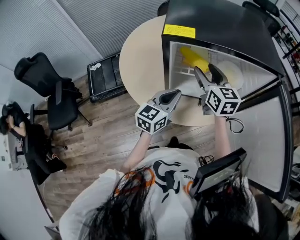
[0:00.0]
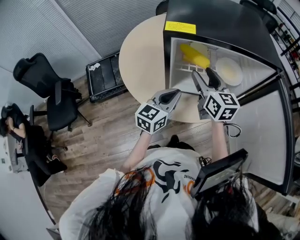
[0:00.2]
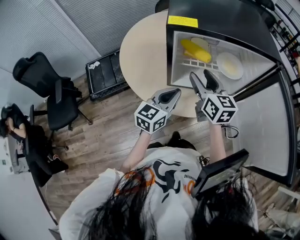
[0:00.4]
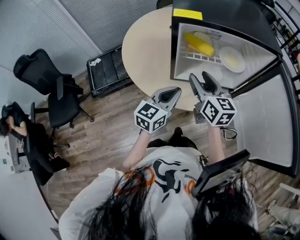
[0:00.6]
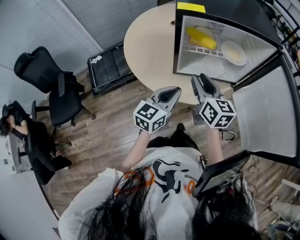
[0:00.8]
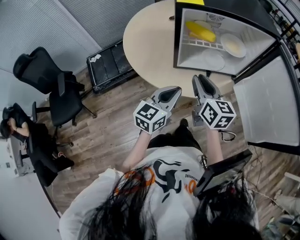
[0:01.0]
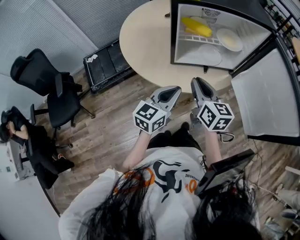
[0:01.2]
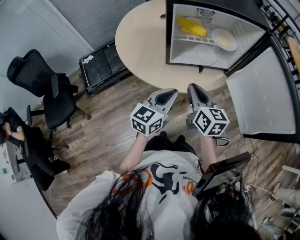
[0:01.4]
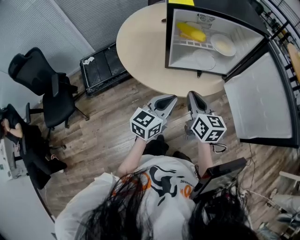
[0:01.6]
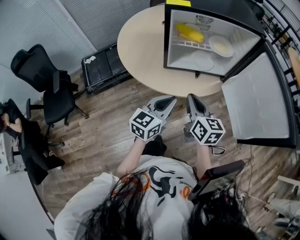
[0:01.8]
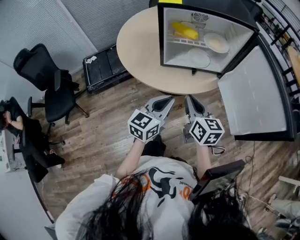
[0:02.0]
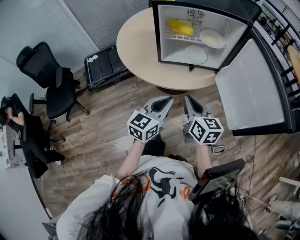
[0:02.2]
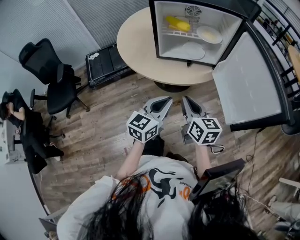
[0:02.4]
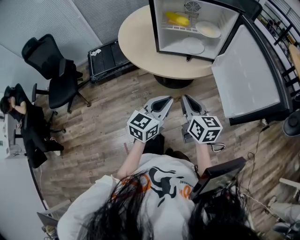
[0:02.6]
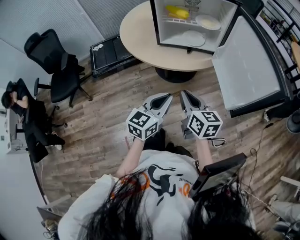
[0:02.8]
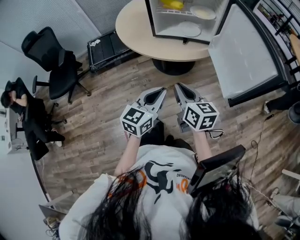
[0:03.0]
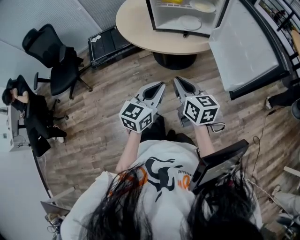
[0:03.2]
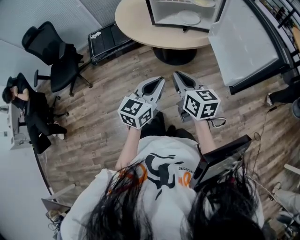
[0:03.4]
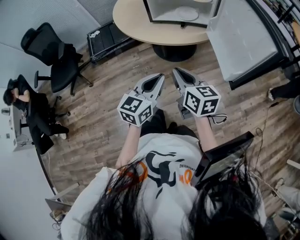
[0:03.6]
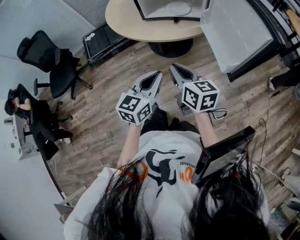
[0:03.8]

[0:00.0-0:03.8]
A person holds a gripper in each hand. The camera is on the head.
0:00.0 to 0:01.2: The grippers both shift backward by about 20 cm. The right gripper closes up.
0:01.2 to 0:02.6: The two grippers go about 20 cm backward and to the right.
0:02.6 to 0:03.8: The two grippers go roughly 5 cm backward.

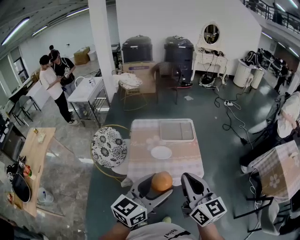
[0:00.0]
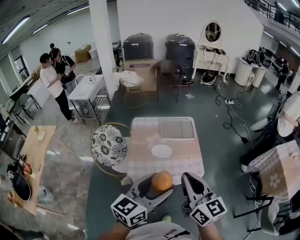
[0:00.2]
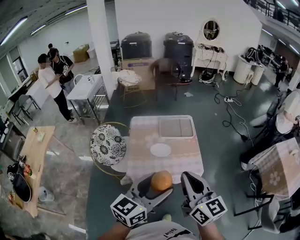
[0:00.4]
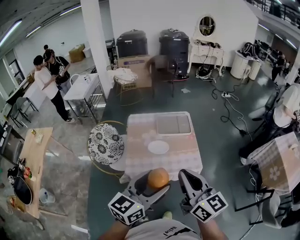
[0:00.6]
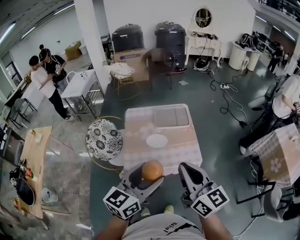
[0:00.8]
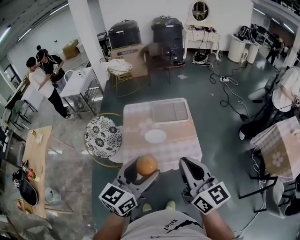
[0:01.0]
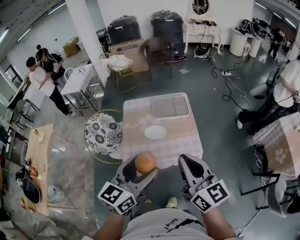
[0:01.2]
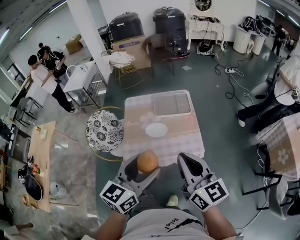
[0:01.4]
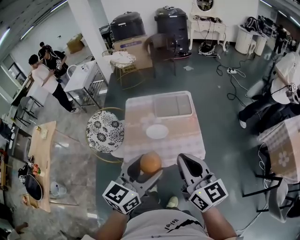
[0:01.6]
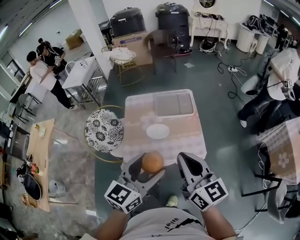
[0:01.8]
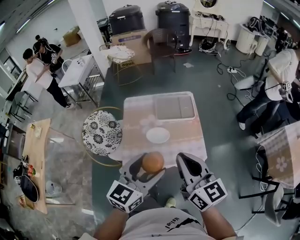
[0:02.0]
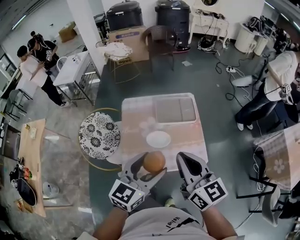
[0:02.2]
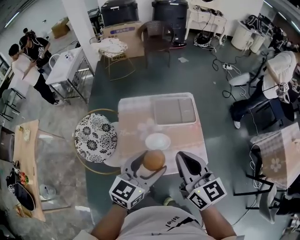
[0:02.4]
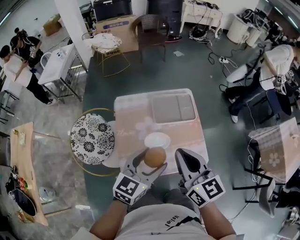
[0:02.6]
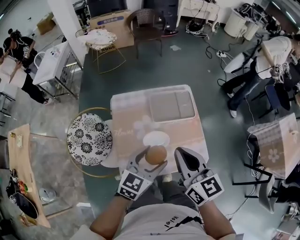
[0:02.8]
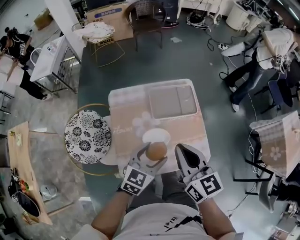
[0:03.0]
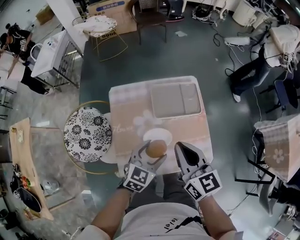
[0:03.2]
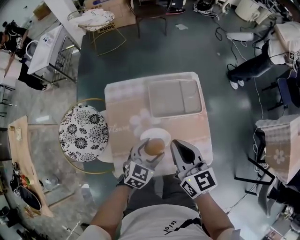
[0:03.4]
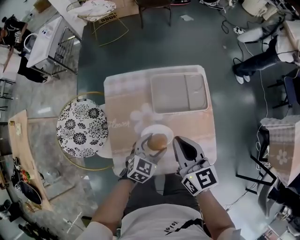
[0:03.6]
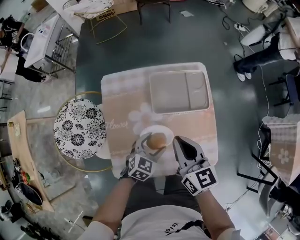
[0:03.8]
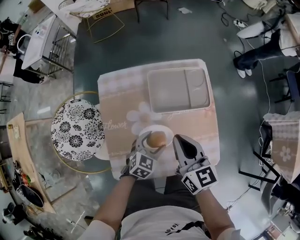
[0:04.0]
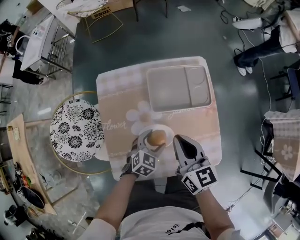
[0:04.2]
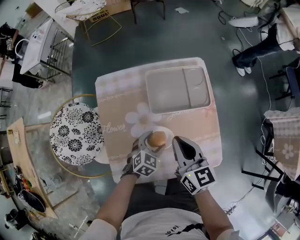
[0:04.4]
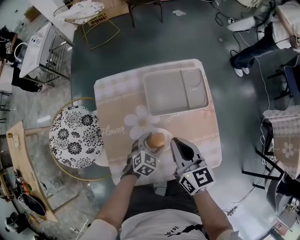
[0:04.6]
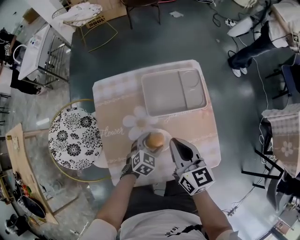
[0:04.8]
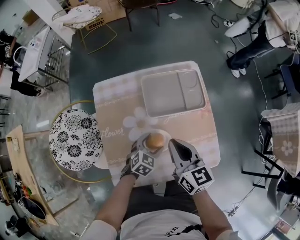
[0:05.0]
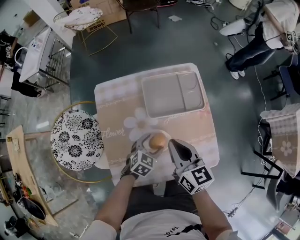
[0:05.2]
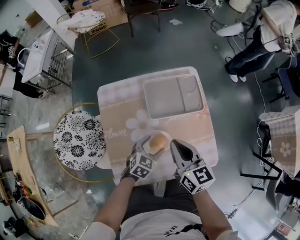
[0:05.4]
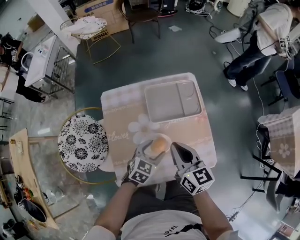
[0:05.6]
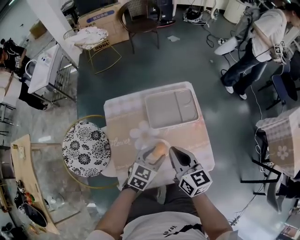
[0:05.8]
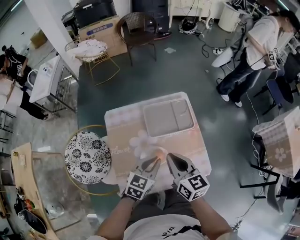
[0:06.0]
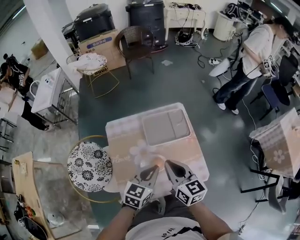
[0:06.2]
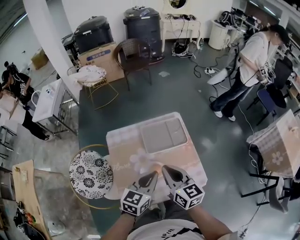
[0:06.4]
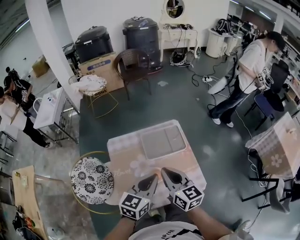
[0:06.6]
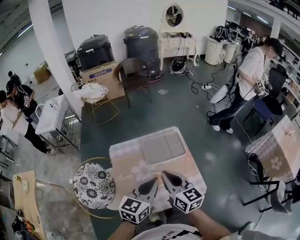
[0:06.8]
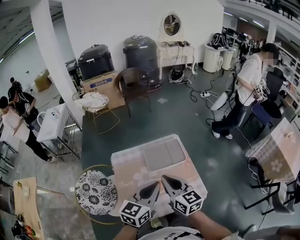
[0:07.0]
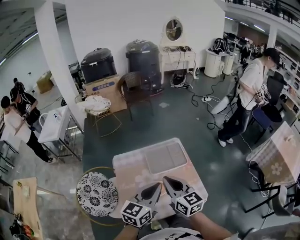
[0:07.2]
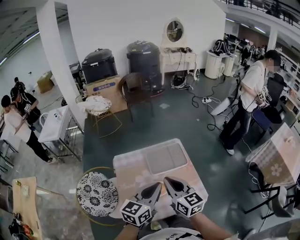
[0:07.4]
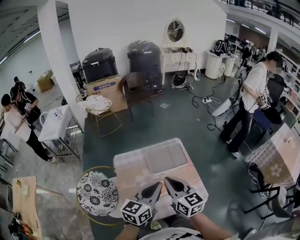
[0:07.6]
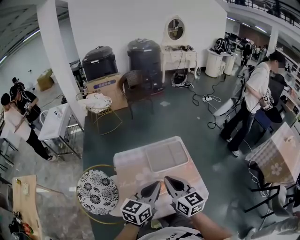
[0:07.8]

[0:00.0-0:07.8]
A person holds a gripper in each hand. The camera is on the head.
0:00.0 to 0:01.6: The right gripper travels to the right by about 5 cm. The left gripper shifts by some 5 cm.
0:01.6 to 0:03.2: The left gripper travels forward and downward by roughly 35 cm, and turns by some 30 degrees, while the right gripper travels forward, downward and to the left by roughly 30 cm.
0:03.2 to 0:04.6: Both grippers move downward, some 20 cm. The left gripper rotates approximately 20 degrees.
0:04.6 to 0:06.2: The right gripper shifts roughly 15 cm upward; the left gripper shifts about 25 cm upward, swivels about 30 degrees, and closes up.
0:06.2 to 0:07.8: Both grippers move upward, roughly 10 cm.

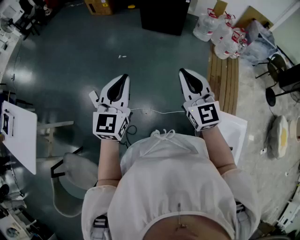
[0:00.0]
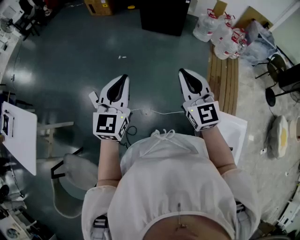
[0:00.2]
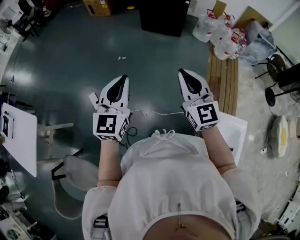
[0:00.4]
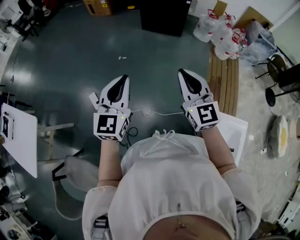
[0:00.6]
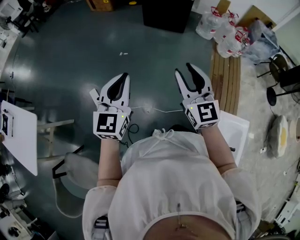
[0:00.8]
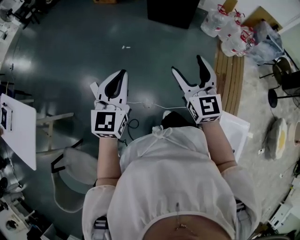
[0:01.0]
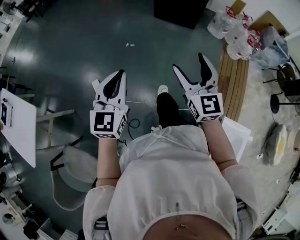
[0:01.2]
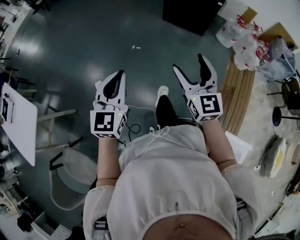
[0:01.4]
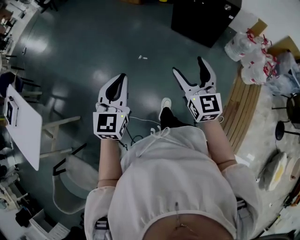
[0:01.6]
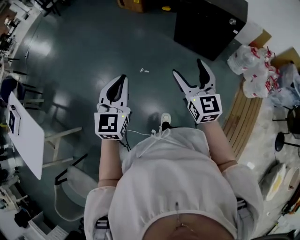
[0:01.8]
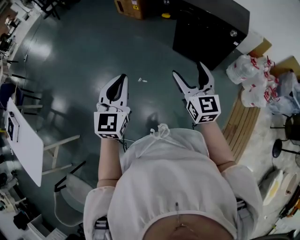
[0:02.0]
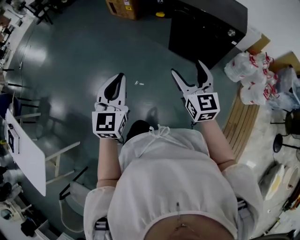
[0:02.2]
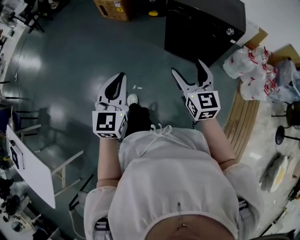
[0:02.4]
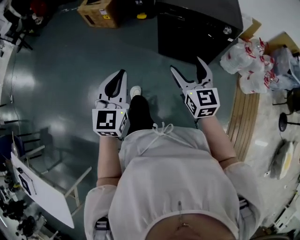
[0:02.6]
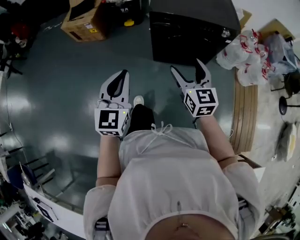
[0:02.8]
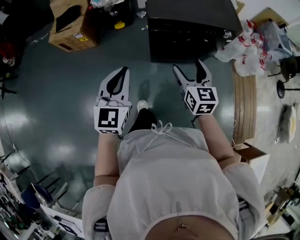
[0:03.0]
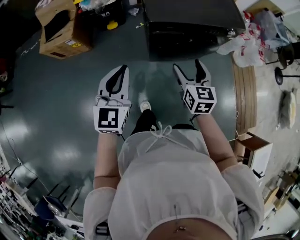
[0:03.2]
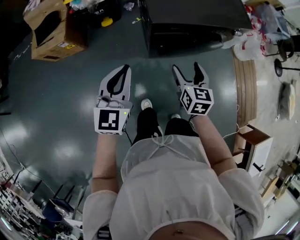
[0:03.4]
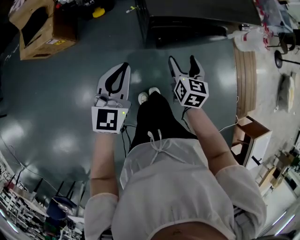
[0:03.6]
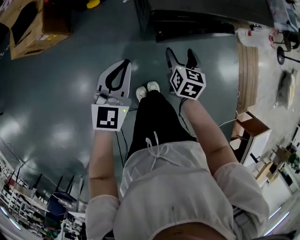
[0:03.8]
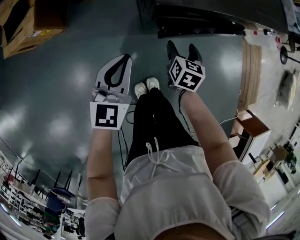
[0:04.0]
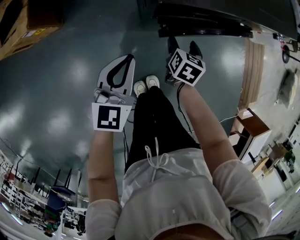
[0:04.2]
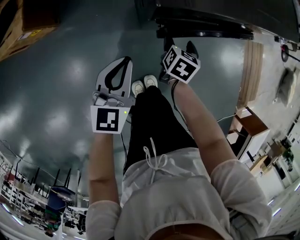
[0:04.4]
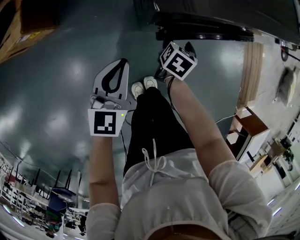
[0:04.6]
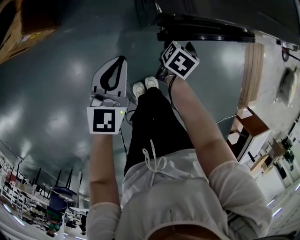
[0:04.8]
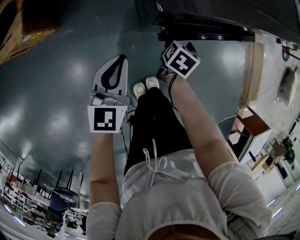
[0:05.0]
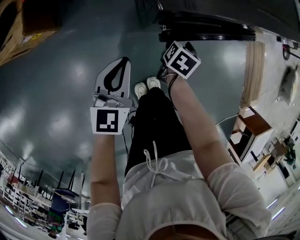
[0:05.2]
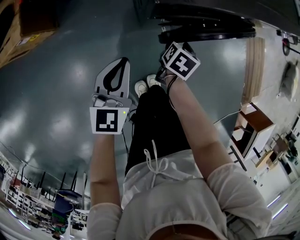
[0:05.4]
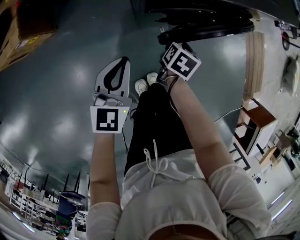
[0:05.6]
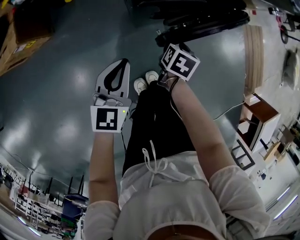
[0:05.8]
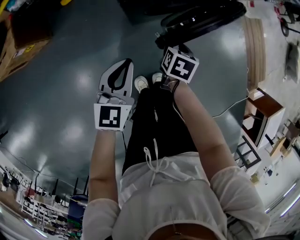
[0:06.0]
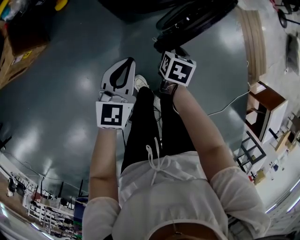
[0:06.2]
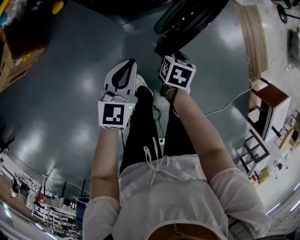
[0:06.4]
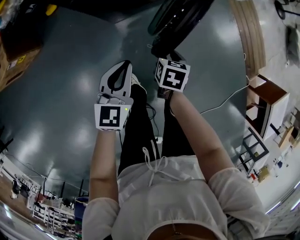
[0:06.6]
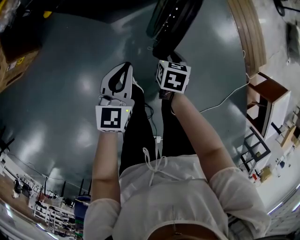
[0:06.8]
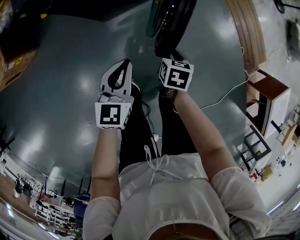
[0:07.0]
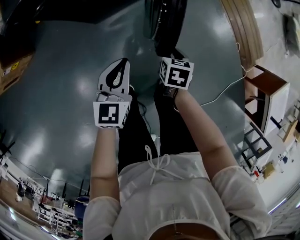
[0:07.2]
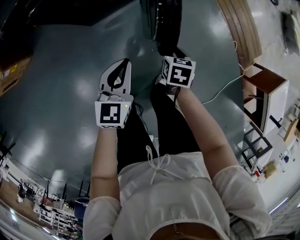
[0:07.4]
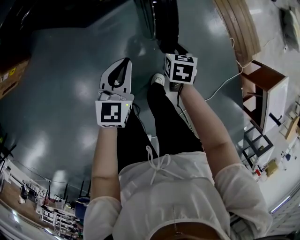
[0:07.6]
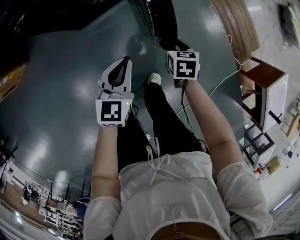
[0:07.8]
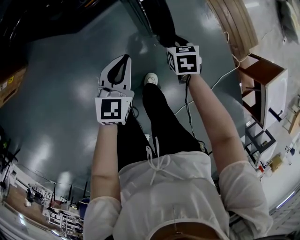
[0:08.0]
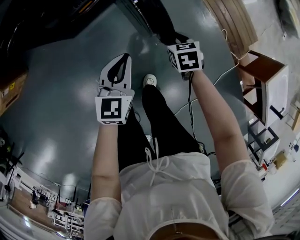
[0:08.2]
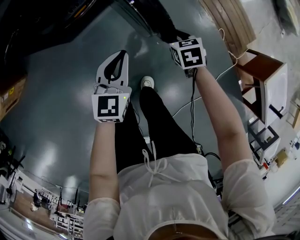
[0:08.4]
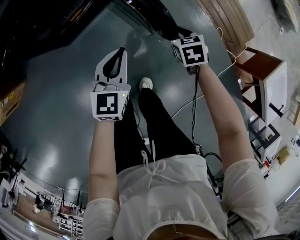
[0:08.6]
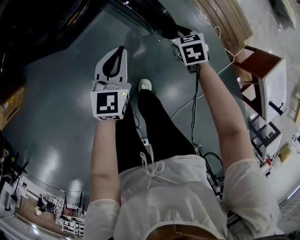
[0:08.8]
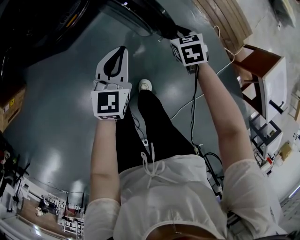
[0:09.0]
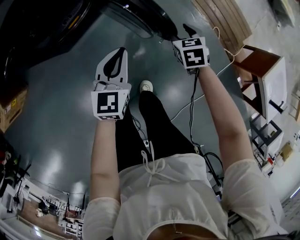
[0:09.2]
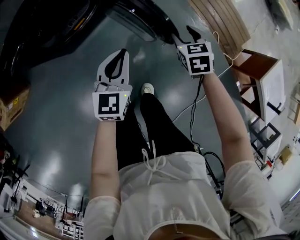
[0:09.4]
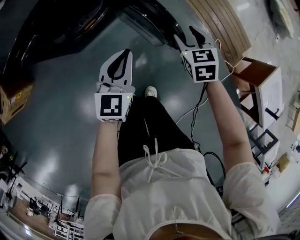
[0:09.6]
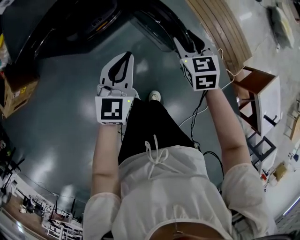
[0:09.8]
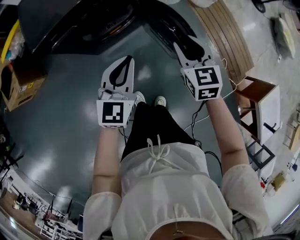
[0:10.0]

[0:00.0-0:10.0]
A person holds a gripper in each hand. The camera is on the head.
0:00.0 to 0:01.4: The two grippers go about 20 cm forward and to the left. The right gripper opens.
0:01.4 to 0:02.8: The pair of grippers is taken some 80 cm. The right gripper rotates about 30 degrees. Meanwhile the left gripper changes its angle by some 20 degrees.
0:02.8 to 0:04.2: The left gripper ends up roughly 50 cm from where it was, and turns by some 30 degrees. The right gripper travels downward by some 40 cm, and points its fingers about 40 degrees further downward.
0:04.2 to 0:05.8: The right gripper moves backward, about 5 cm, and closes its fingers; the left gripper ends up approximately 5 cm from where it was.
0:05.8 to 0:07.2: The two grippers go roughly 35 cm to the right.
0:07.2 to 0:08.6: The two grippers go roughly 25 cm to the right.
0:08.6 to 0:10.0: Both grippers travel together upward and to the left, some 30 cm. The right gripper rotates some 30 degrees.

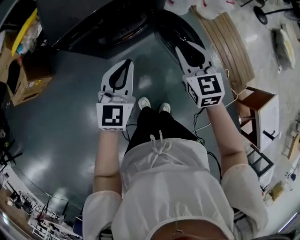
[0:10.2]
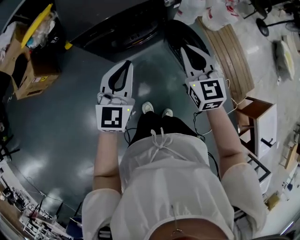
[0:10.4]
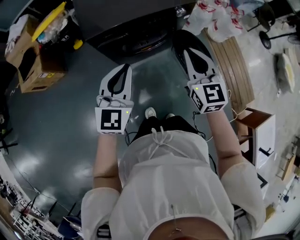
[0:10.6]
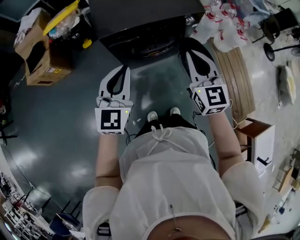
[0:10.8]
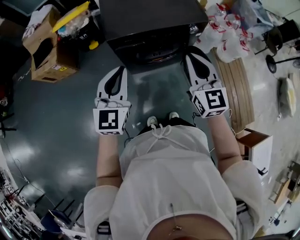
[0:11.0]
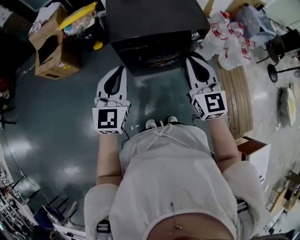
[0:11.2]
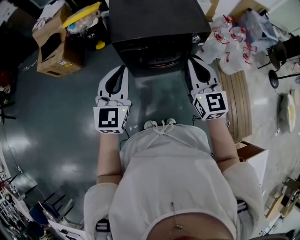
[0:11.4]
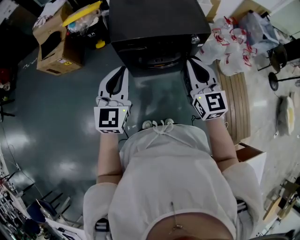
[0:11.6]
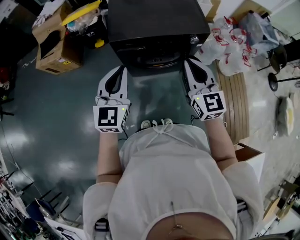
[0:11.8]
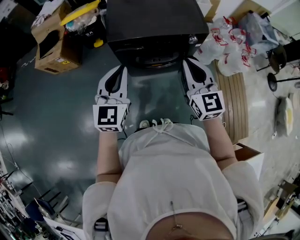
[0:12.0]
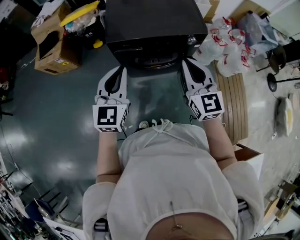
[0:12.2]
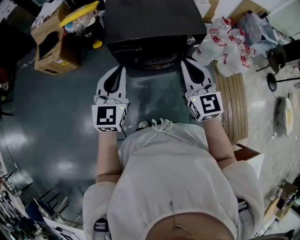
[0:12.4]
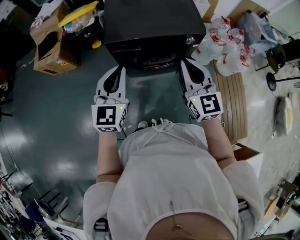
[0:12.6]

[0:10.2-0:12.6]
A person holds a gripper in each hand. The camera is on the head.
0:10.2 to 0:11.4: Both grippers move upward and to the left, about 25 cm. The right gripper changes its angle by about 30 degrees; the left gripper changes its angle by approximately 30 degrees.
0:11.4 to 0:12.6: The grippers move only a little.
